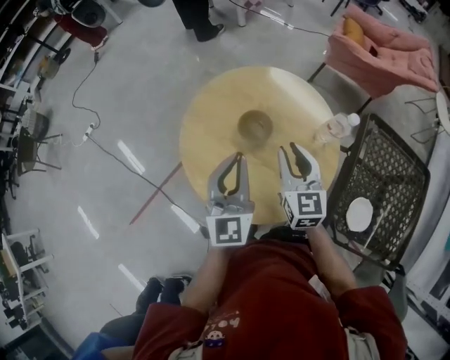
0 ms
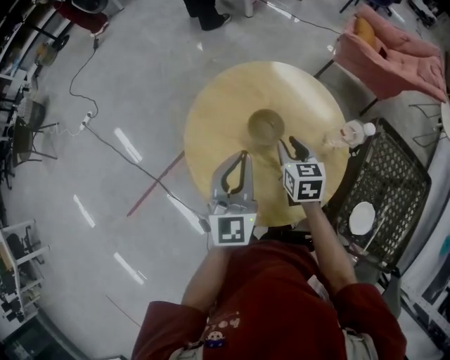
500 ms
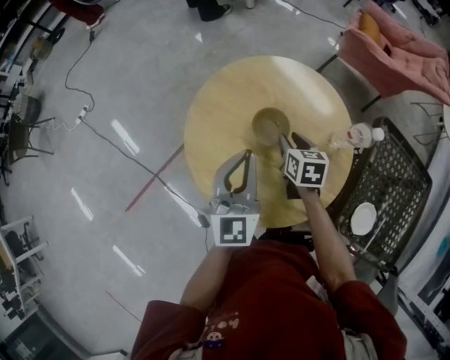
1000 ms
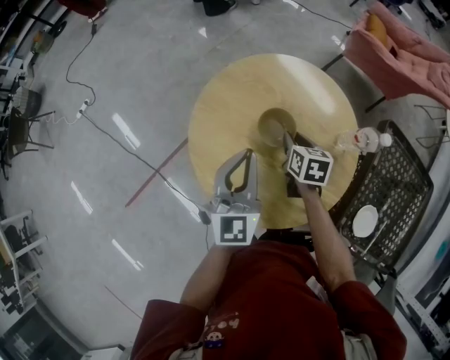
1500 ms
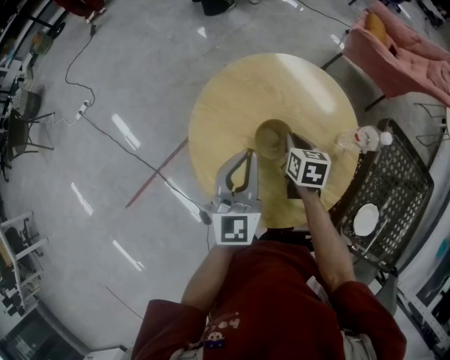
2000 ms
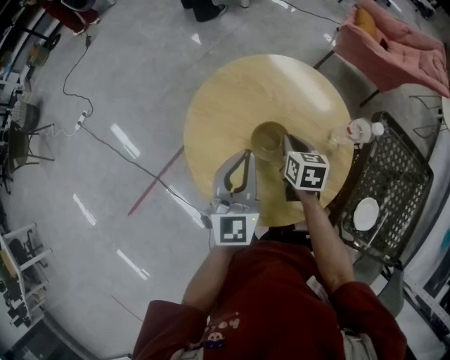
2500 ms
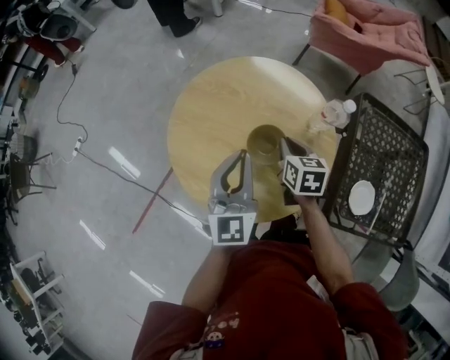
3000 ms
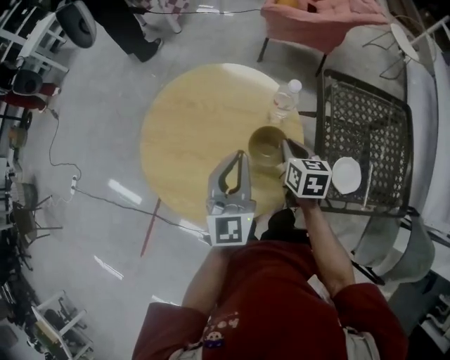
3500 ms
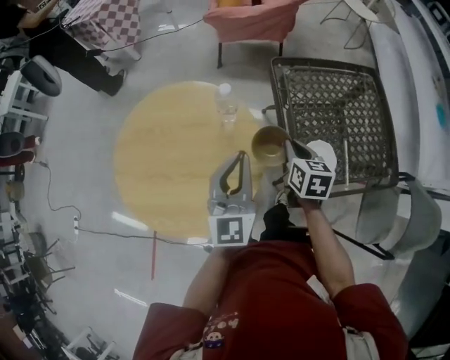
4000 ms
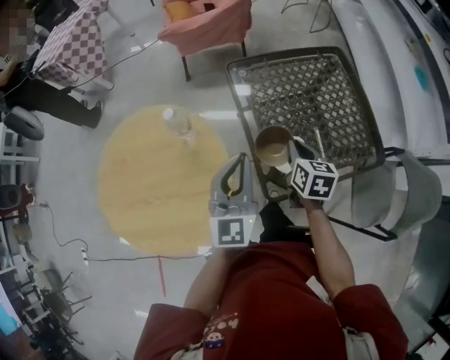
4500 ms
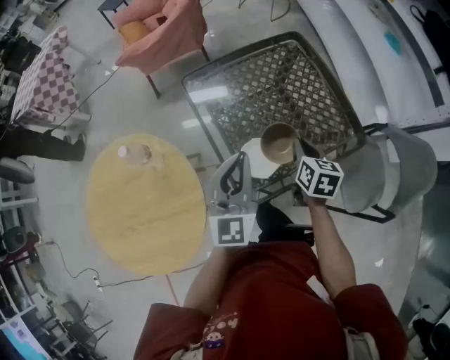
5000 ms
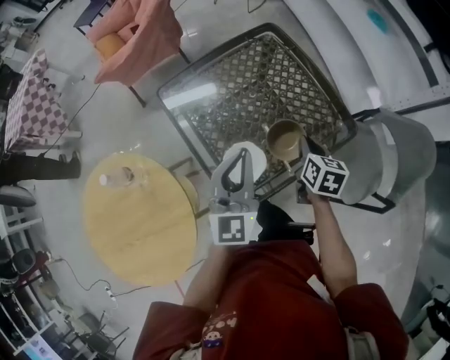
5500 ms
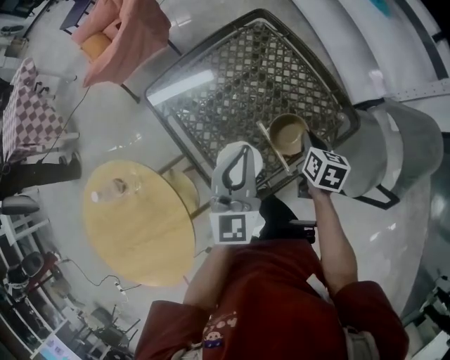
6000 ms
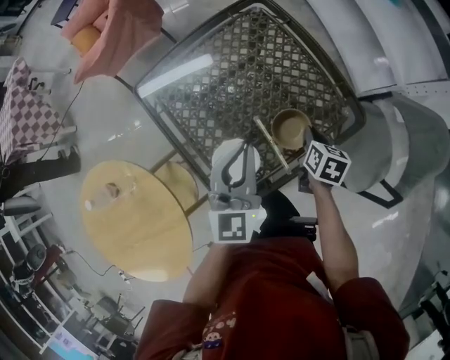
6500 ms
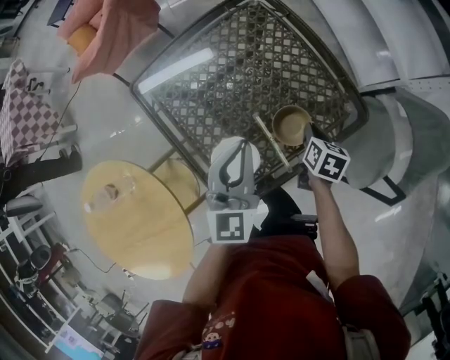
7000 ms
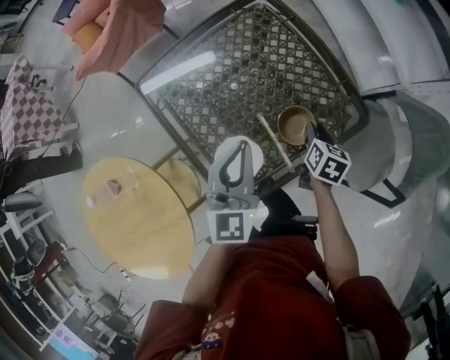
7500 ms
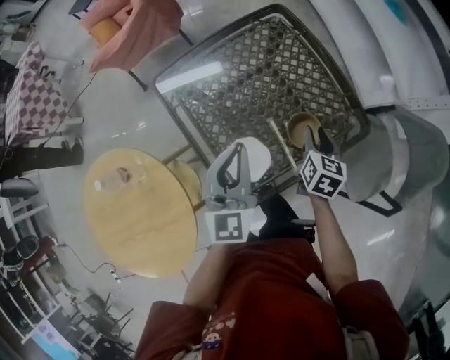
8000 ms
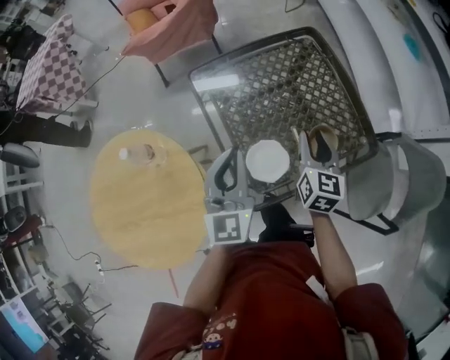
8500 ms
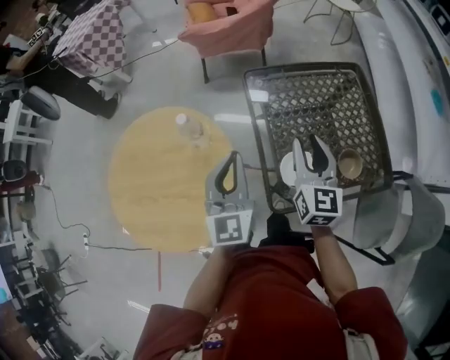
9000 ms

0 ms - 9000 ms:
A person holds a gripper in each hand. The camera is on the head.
0 ms - 2000 ms: The right gripper moves downward and forward, about 15 cm, and angles its fingers downward, by roughly 30 degrees; the left gripper shifts approximately 5 cm downward.
2000 ms - 4500 ms: The pair of grippers is taken some 40 cm. The right gripper rotates about 50 degrees, while the left gripper changes its angle by some 40 degrees.
4500 ms - 7000 ms: The right gripper goes about 35 cm to the right and downward, and turns by some 30 degrees; the left gripper travels to the right, forward and downward by approximately 30 cm, and swivels about 20 degrees.
7000 ms - 9000 ms: The right gripper shifts by roughly 40 cm, points its fingers about 40 degrees further upward, and opens, while the left gripper moves about 30 cm, and changes its angle by roughly 30 degrees.

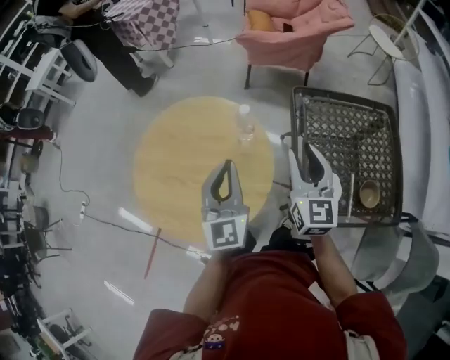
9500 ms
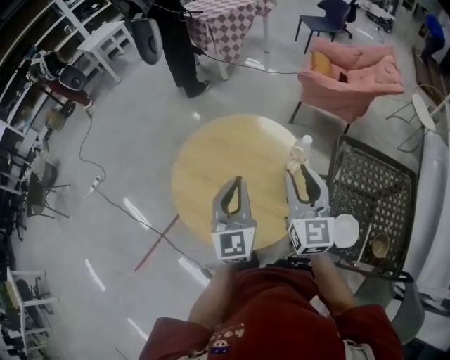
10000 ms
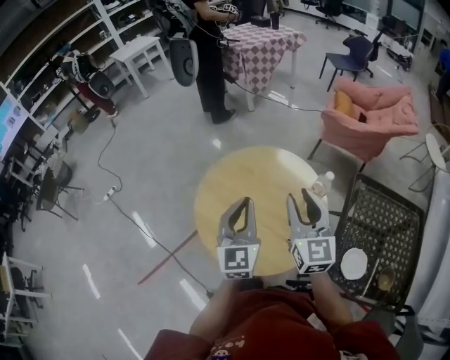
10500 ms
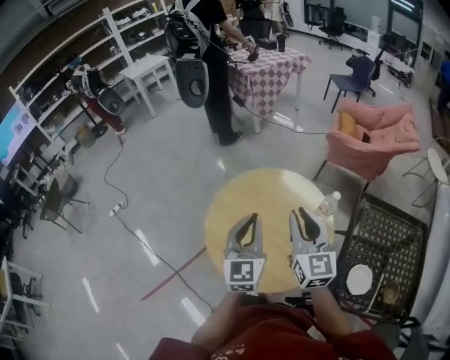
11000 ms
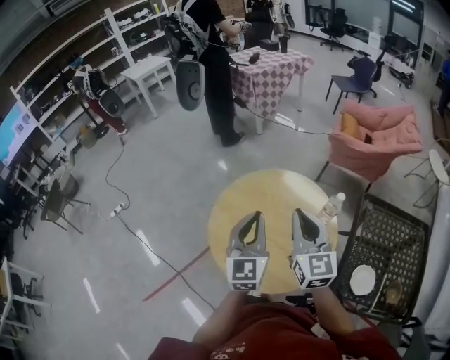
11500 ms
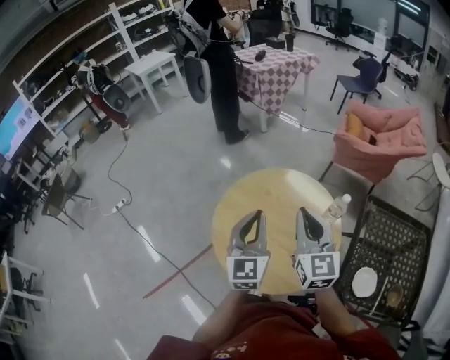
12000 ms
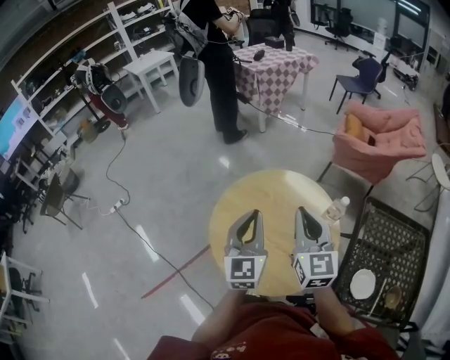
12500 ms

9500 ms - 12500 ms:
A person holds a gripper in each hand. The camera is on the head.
9500 ms - 11000 ms: The grippers both shift to the left by approximately 25 cm. The right gripper rotates approximately 30 degrees.
11000 ms - 12500 ms: The grippers stay close to where they were, moving slightly.

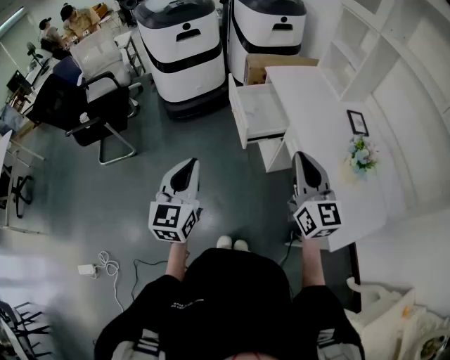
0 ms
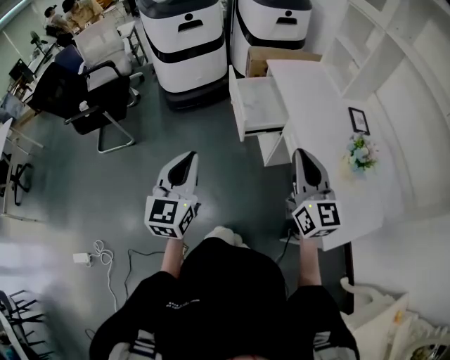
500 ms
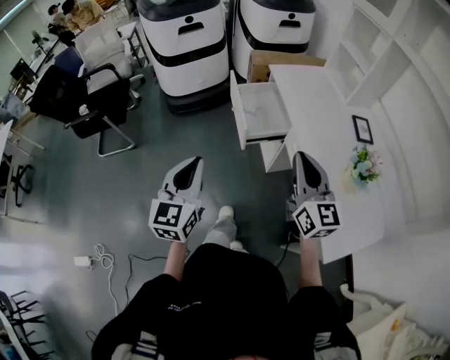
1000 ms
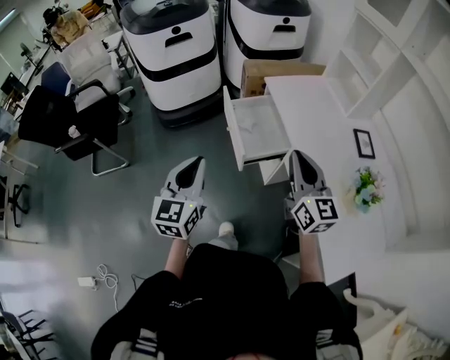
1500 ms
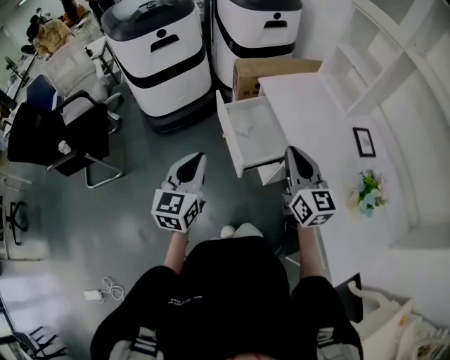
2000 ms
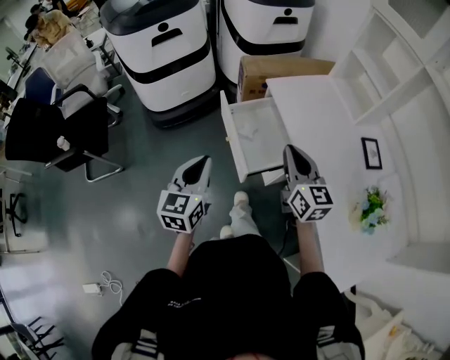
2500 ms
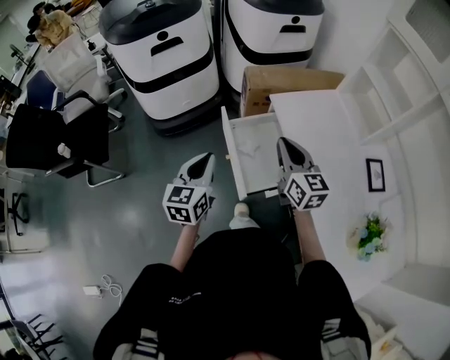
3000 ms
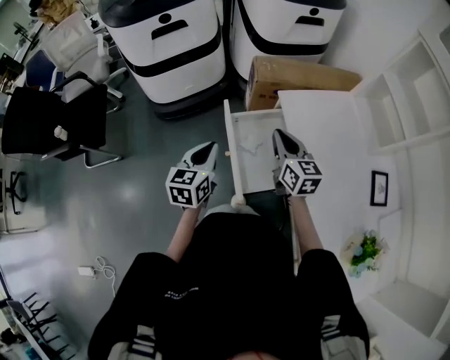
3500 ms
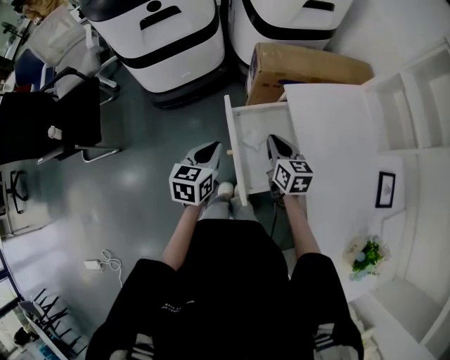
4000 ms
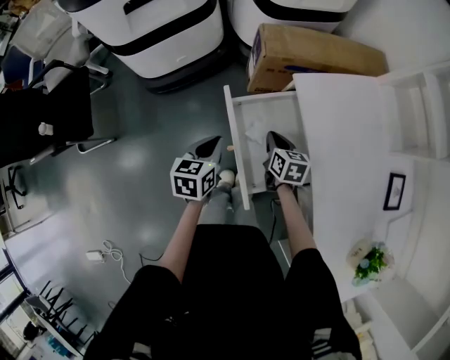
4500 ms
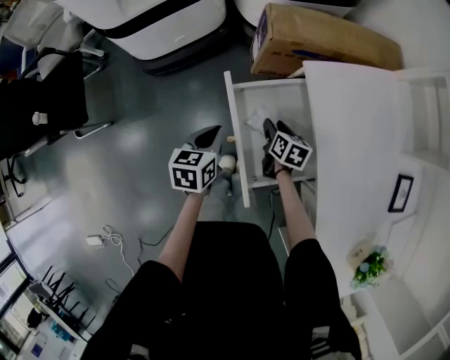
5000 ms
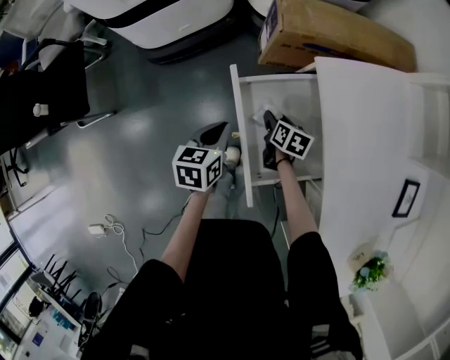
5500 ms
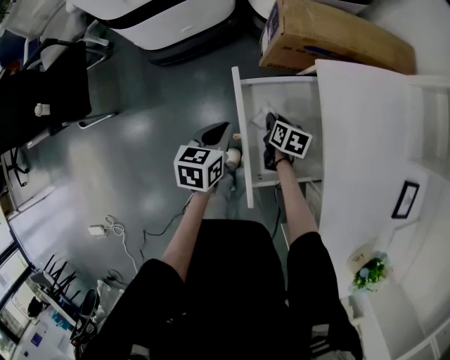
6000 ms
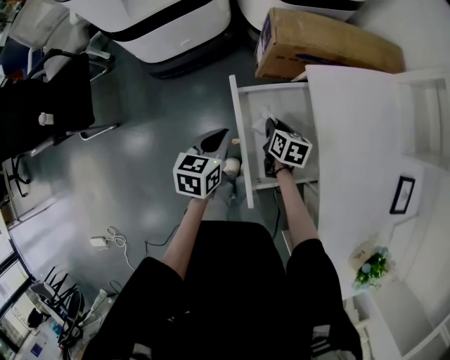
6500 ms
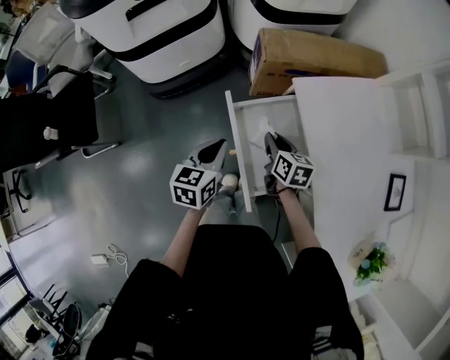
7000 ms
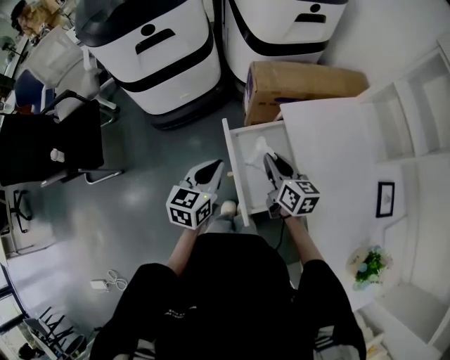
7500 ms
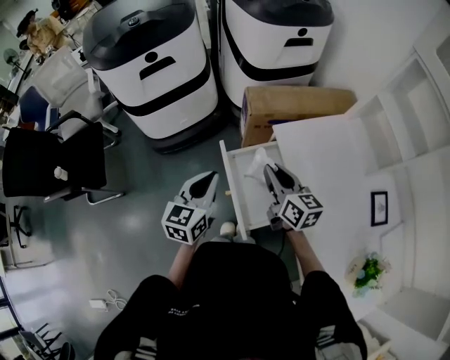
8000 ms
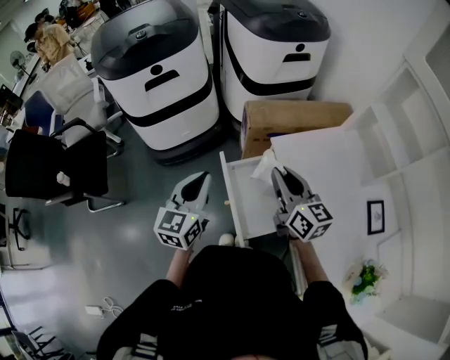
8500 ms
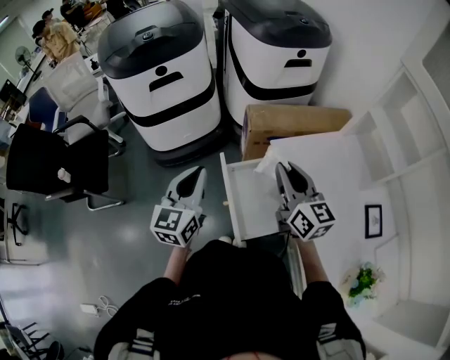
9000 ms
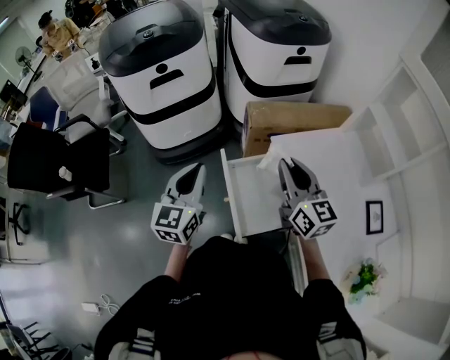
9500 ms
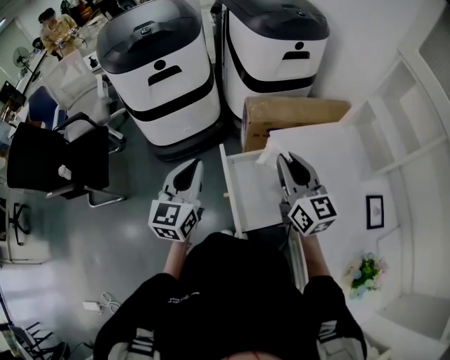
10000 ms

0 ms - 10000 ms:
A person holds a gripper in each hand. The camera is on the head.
0 ms - 2000 ms: The two grippers go about 25 cm forward.
2000 ms - 4000 ms: Both grippers move forward and downward, approximately 30 cm. The right gripper rotates about 30 degrees; the left gripper changes its angle by approximately 30 degrees.
4000 ms - 6000 ms: The left gripper travels downward by about 10 cm; the right gripper shifts about 20 cm downward, swivels approximately 30 degrees, and opens and closes again.
6000 ms - 8000 ms: The left gripper goes approximately 20 cm upward, and swivels roughly 30 degrees, while the right gripper travels upward by roughly 35 cm, and angles its fingers upward, by roughly 40 degrees.
8000 ms - 10000 ms: The grippers both shift upward by about 10 cm. The right gripper swivels roughly 20 degrees.

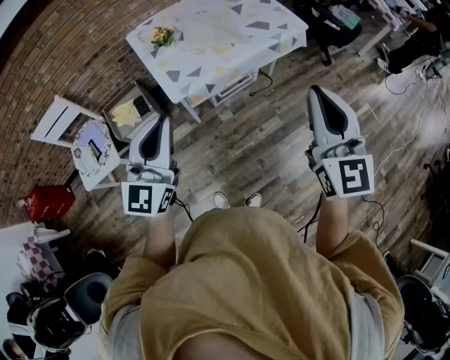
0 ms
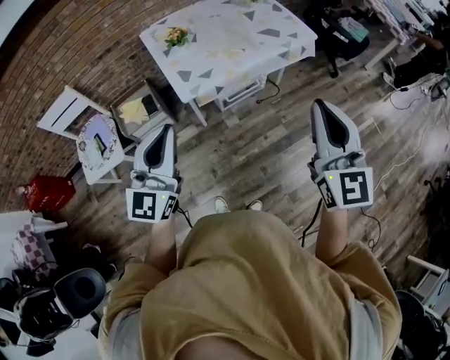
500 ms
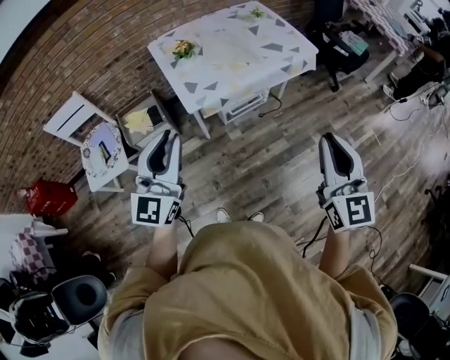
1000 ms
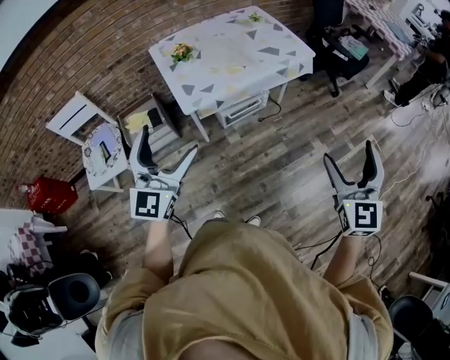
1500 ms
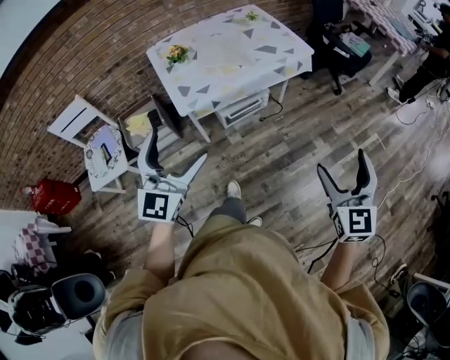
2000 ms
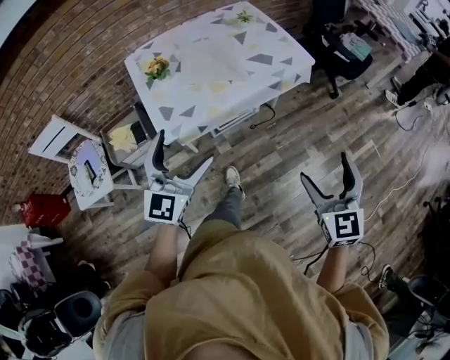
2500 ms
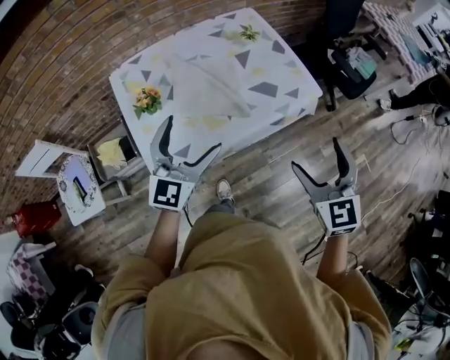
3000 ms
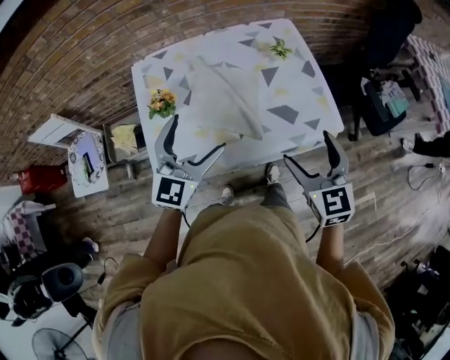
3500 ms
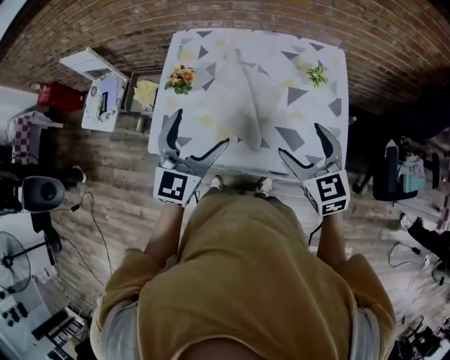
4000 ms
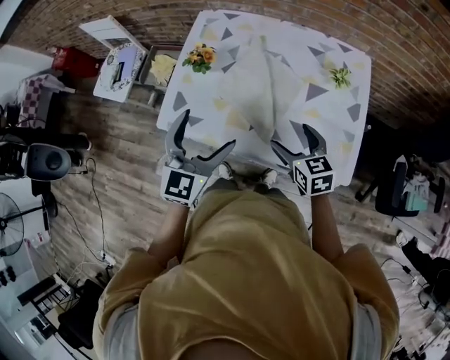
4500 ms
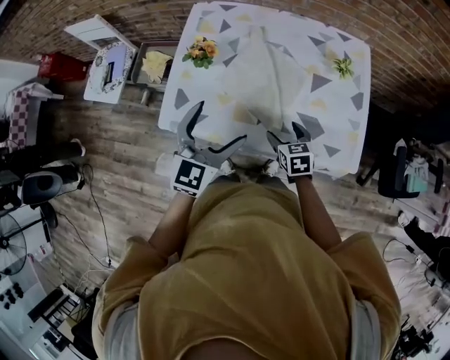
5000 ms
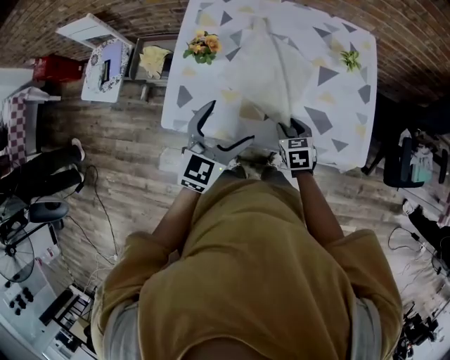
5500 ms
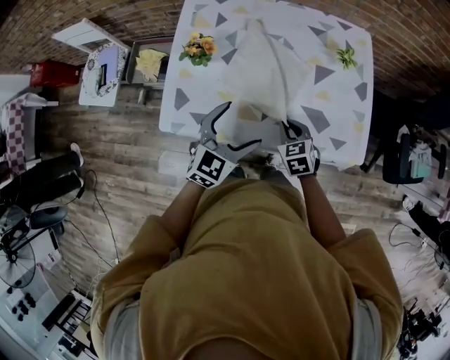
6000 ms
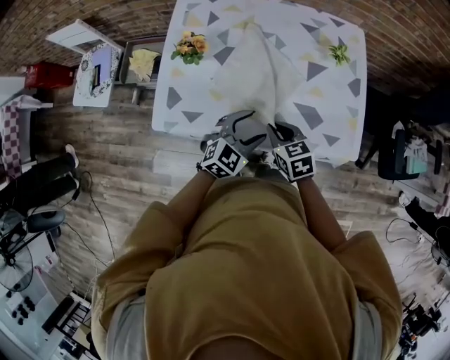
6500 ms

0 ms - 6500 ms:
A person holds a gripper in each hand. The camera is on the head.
0 ms - 2000 ms: The left gripper shifts some 5 cm to the right, and opens up. Meanwhile the right gripper travels to the right, downward and backward by some 20 cm, and opens up.
2000 ms - 4500 ms: The pair of grippers is taken some 50 cm. The left gripper turns by approximately 40 degrees, while the right gripper rotates roughly 70 degrees.
4500 ms - 6500 ms: The right gripper heads downward and to the left, covering some 10 cm, and closes its fingers; the left gripper moves downward and to the right, about 20 cm, rotates approximately 40 degrees, and closes up.
